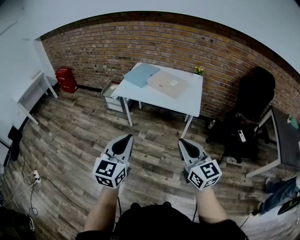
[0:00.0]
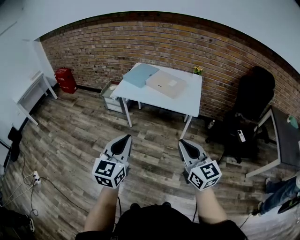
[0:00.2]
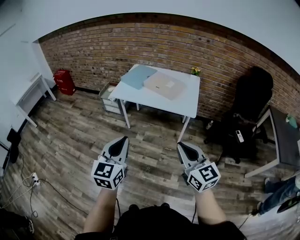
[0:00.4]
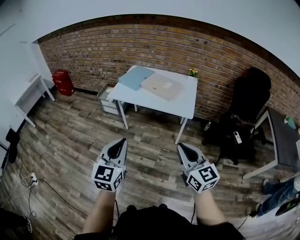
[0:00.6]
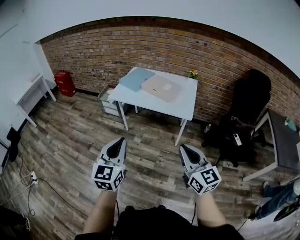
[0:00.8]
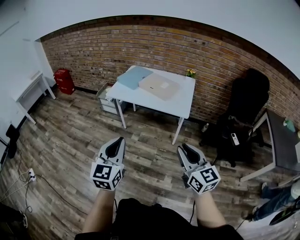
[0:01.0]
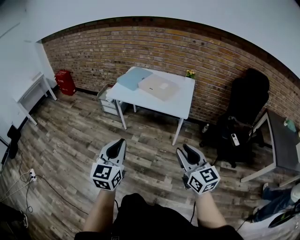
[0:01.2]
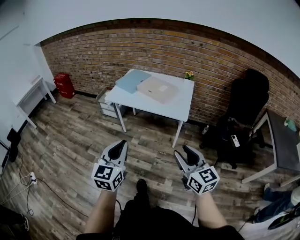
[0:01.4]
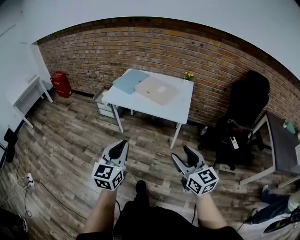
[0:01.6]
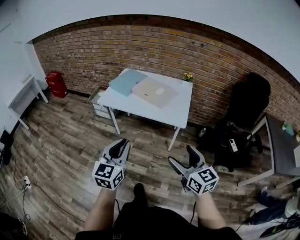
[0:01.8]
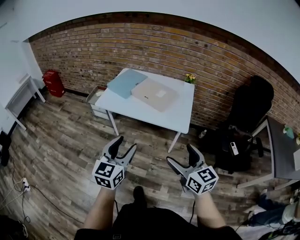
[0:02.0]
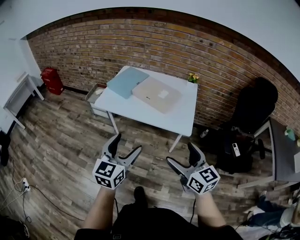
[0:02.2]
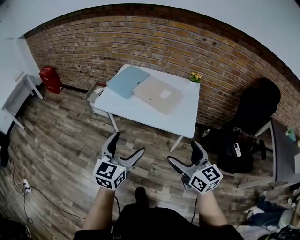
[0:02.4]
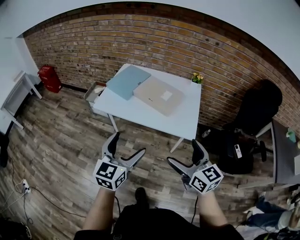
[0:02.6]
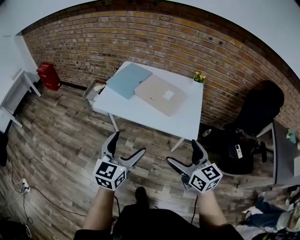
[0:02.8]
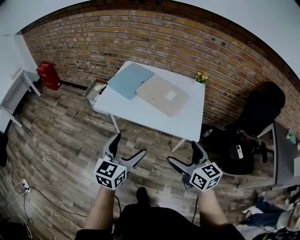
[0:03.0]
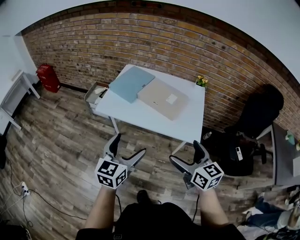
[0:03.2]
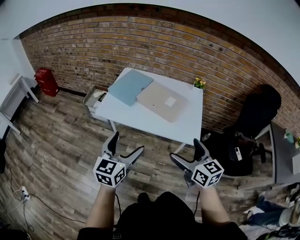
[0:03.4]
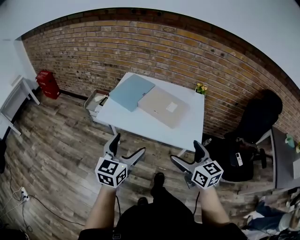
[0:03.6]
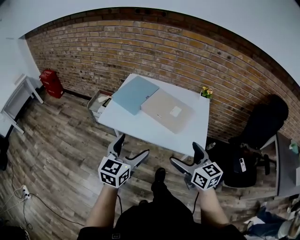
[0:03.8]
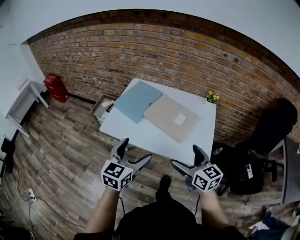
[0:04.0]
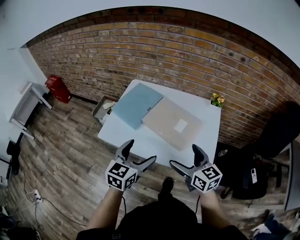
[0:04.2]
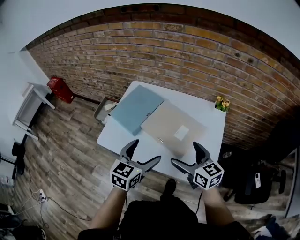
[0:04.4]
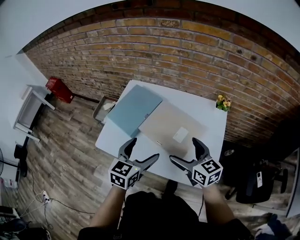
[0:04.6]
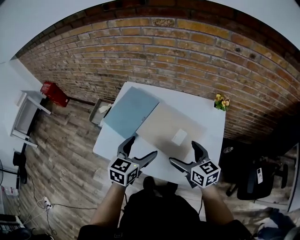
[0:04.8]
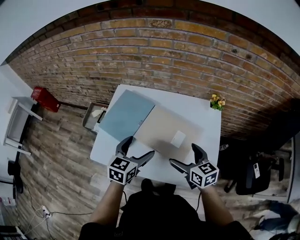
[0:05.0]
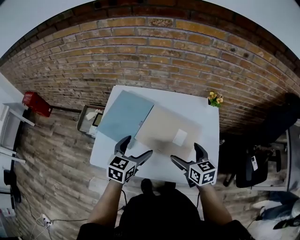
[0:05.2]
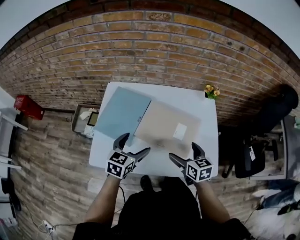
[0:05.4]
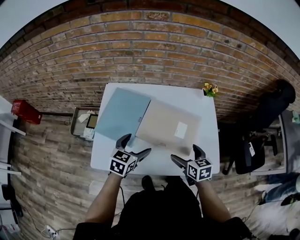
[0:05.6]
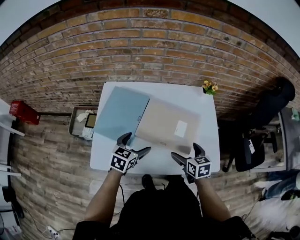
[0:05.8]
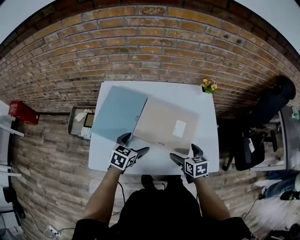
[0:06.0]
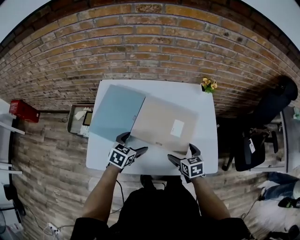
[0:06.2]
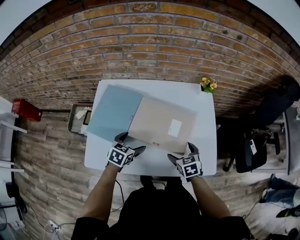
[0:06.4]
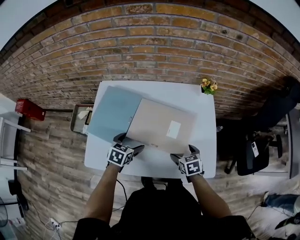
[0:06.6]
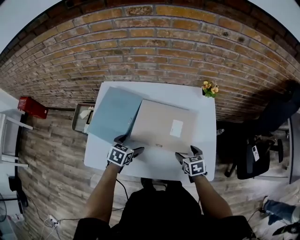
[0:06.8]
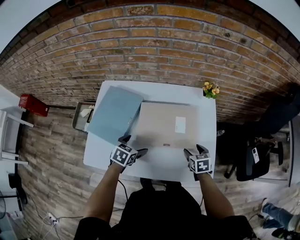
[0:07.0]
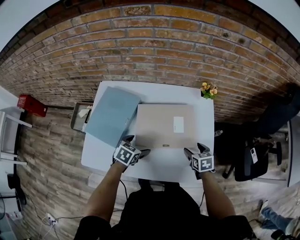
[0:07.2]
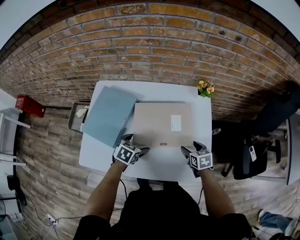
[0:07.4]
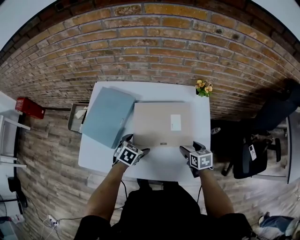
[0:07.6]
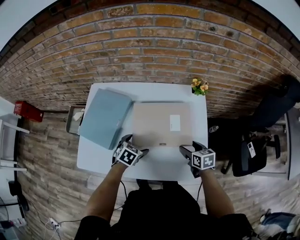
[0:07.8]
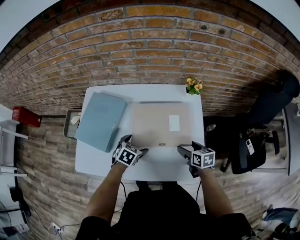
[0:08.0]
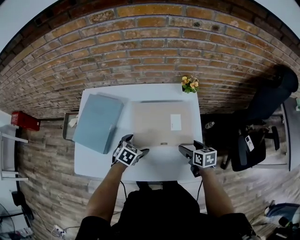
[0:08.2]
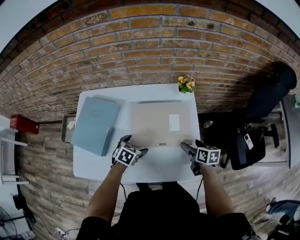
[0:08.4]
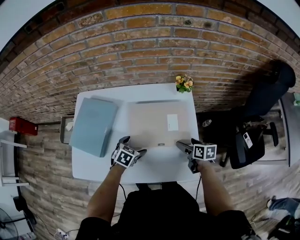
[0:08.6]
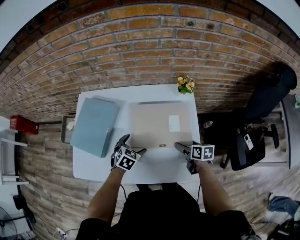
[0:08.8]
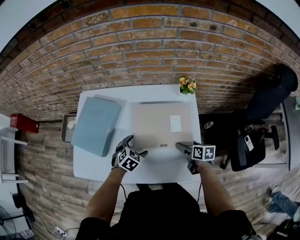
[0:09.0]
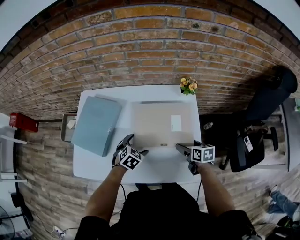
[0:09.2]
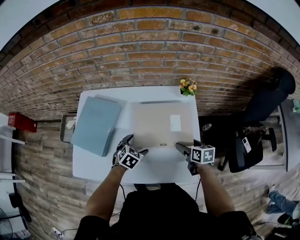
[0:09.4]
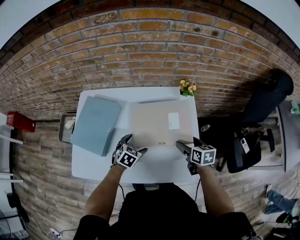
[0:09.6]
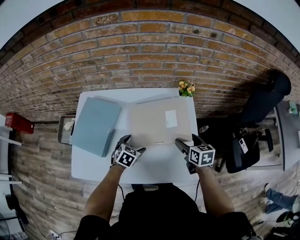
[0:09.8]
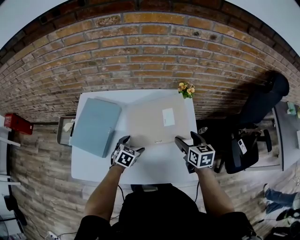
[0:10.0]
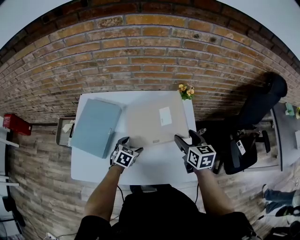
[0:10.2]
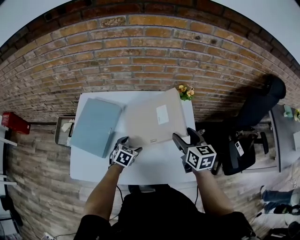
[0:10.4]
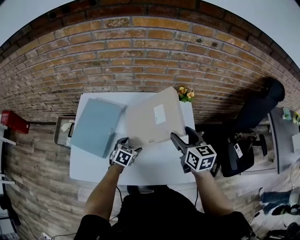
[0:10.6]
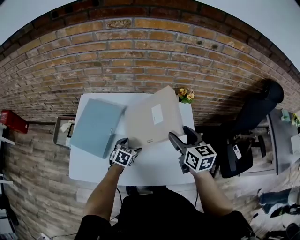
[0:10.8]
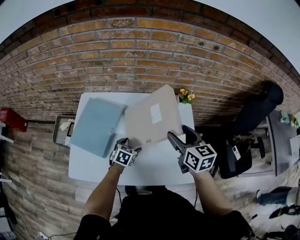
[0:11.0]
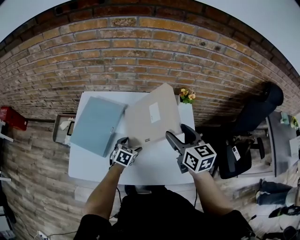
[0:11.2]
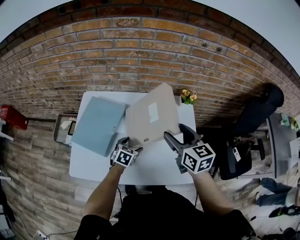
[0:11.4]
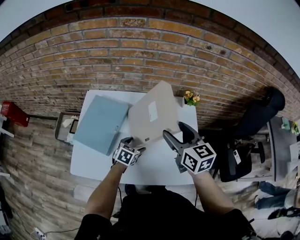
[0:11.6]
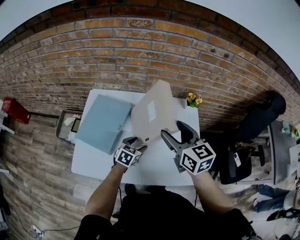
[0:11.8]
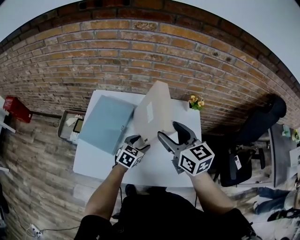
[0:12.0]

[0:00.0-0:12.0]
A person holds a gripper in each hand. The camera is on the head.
0:00.0 to 0:01.6: Both grippers move to the right, some 10 cm. The right gripper opens.
0:01.6 to 0:03.0: The two grippers go about 25 cm forward. The right gripper opens up, while the left gripper opens up.
0:03.0 to 0:04.4: The two grippers go some 25 cm forward.
0:04.4 to 0:06.0: Both grippers move downward, about 15 cm. The left gripper rotates approximately 30 degrees. The right gripper changes its angle by roughly 40 degrees.
0:06.0 to 0:07.6: The left gripper heads to the right and downward, covering roughly 10 cm; the right gripper is displaced to the right and forward by roughly 15 cm, and closes up.
0:07.6 to 0:09.0: The right gripper ends up about 5 cm from where it was, and rotates some 20 degrees; the left gripper is displaced to the right by about 5 cm.
0:09.0 to 0:10.4: The right gripper travels upward by approximately 20 cm, and rotates about 30 degrees.
0:10.4 to 0:12.0: The left gripper goes about 5 cm upward. The right gripper is displaced to the left and upward by some 20 cm, and changes its angle by approximately 20 degrees.

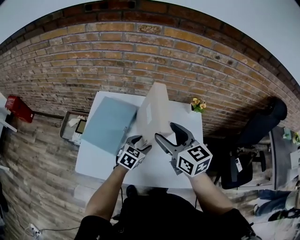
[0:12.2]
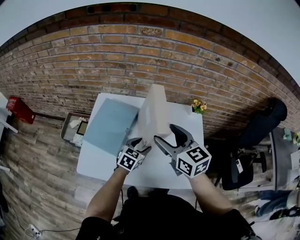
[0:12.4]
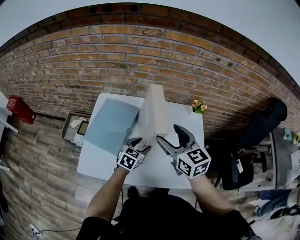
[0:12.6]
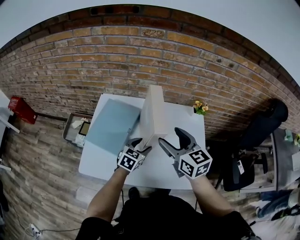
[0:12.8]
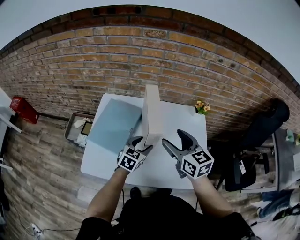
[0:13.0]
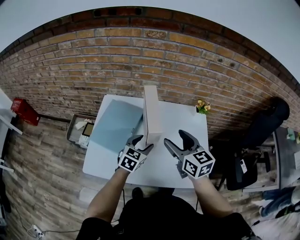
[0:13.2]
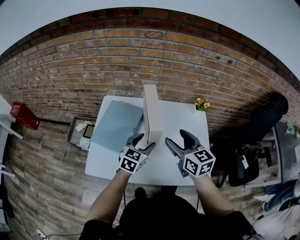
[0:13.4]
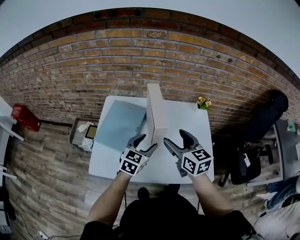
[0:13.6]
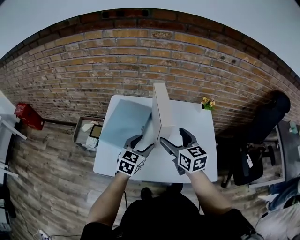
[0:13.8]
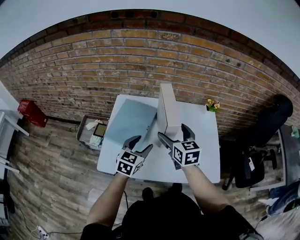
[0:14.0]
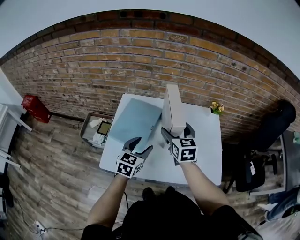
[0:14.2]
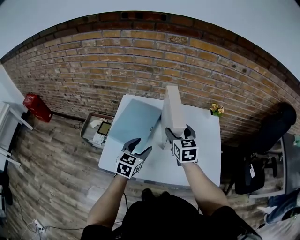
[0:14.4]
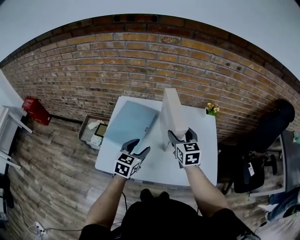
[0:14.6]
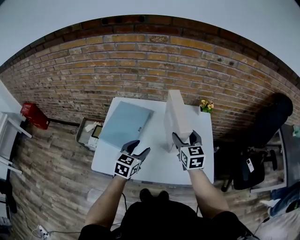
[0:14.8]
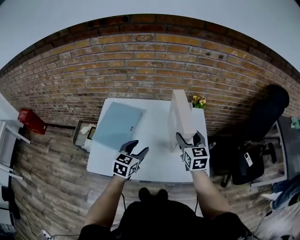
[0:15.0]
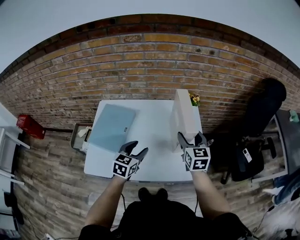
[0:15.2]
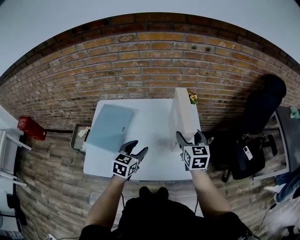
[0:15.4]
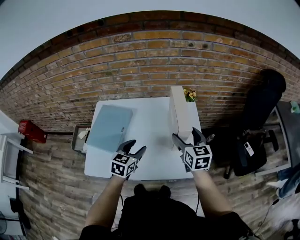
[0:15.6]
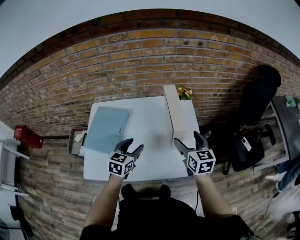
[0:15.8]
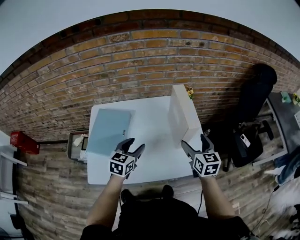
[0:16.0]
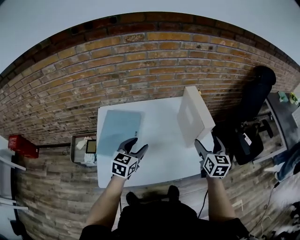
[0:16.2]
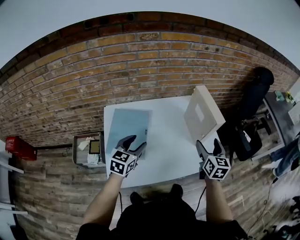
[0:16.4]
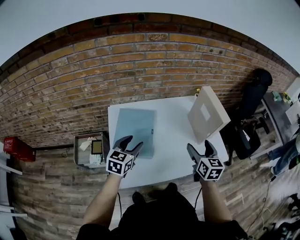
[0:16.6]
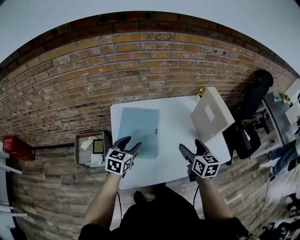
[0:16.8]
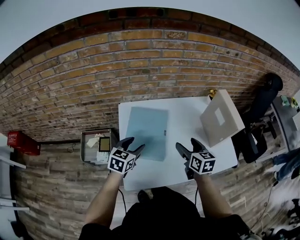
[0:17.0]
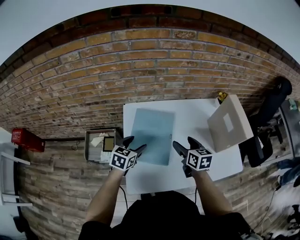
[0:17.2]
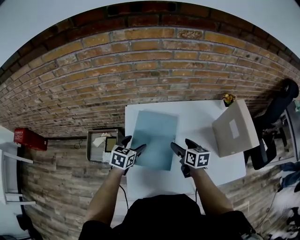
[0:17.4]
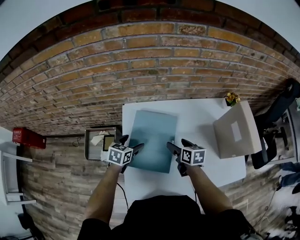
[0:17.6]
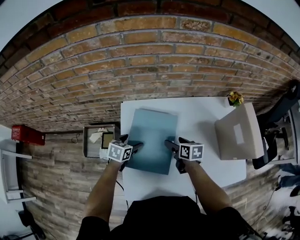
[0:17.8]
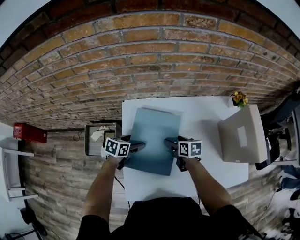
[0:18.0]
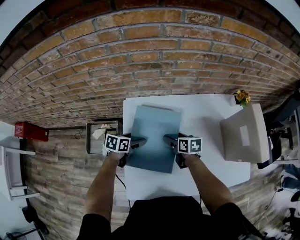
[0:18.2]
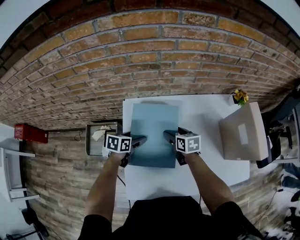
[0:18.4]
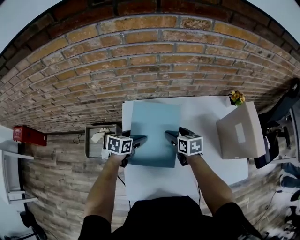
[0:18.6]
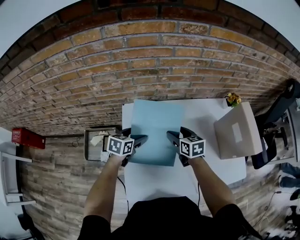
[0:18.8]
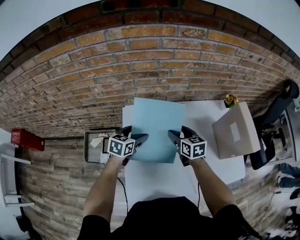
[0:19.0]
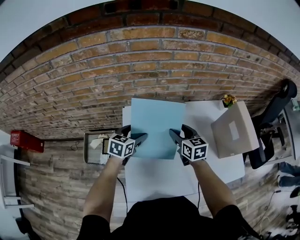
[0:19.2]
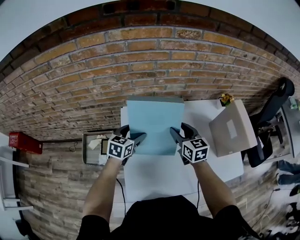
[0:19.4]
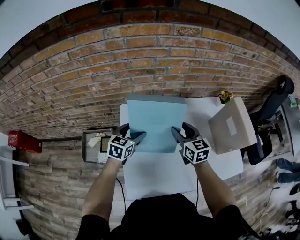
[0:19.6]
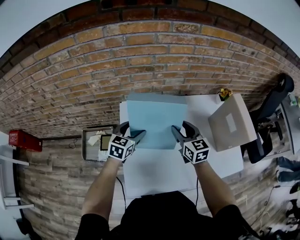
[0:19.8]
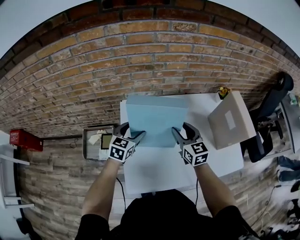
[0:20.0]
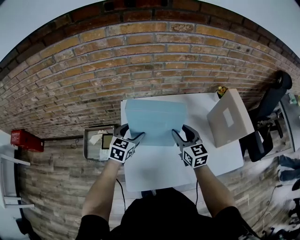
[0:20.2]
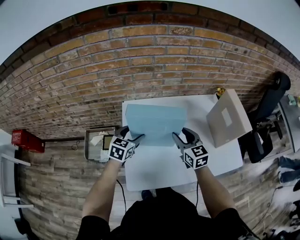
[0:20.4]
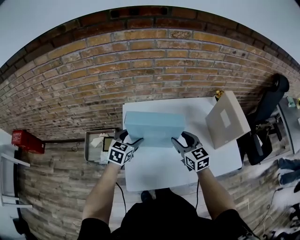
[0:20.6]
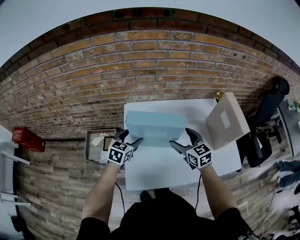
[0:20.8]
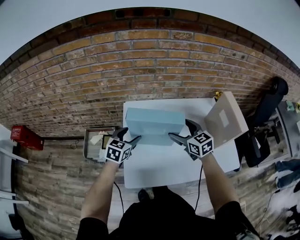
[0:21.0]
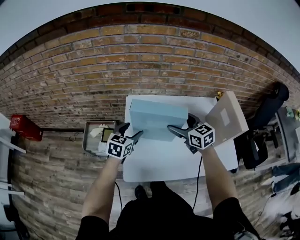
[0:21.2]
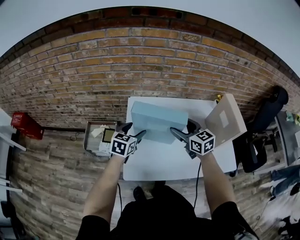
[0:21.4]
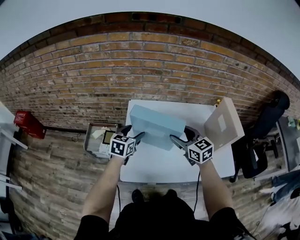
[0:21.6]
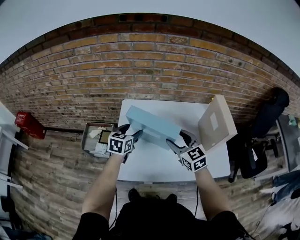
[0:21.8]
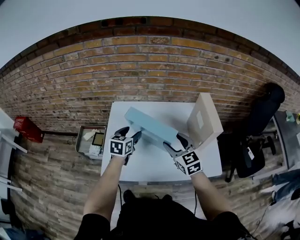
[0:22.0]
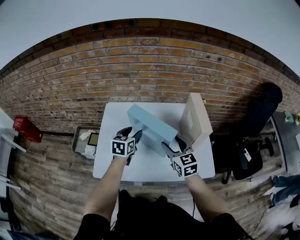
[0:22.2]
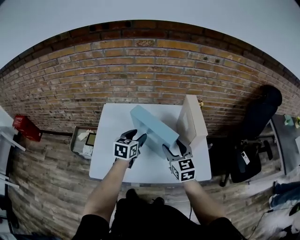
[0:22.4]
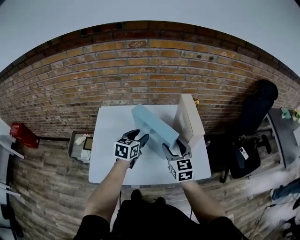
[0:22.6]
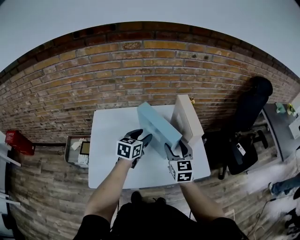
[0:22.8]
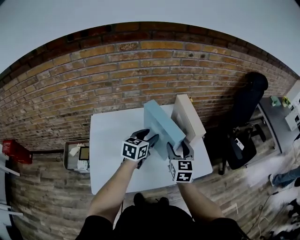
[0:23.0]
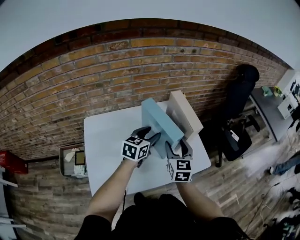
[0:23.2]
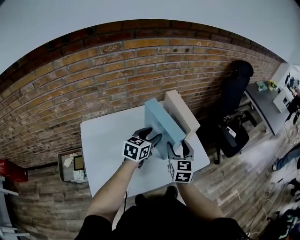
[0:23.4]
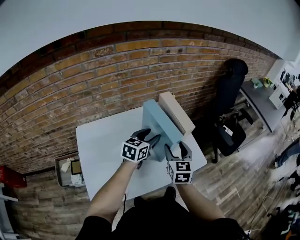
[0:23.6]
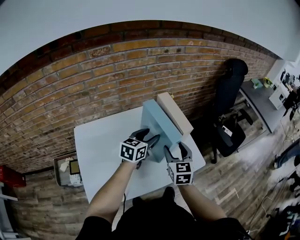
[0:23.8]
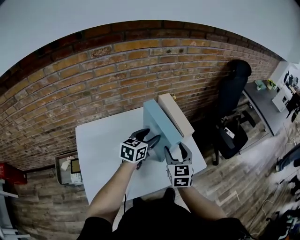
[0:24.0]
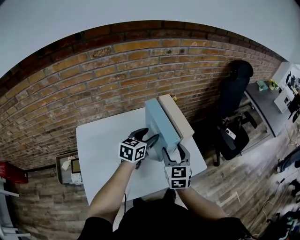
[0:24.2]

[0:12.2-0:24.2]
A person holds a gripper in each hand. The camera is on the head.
0:12.2 to 0:13.8: The right gripper travels downward by some 5 cm. Meanwhile the left gripper moves to the left and upward, about 10 cm.
0:13.8 to 0:15.2: The right gripper heads to the right, covering roughly 20 cm, and changes its angle by about 20 degrees, while the left gripper is displaced to the right by approximately 5 cm.
0:15.2 to 0:16.6: The right gripper is displaced backward and to the left by about 15 cm; the left gripper travels to the left by some 20 cm.
0:16.6 to 0:18.2: The left gripper moves downward, forward and to the left, roughly 25 cm, turns by some 40 degrees, and opens. The right gripper goes roughly 35 cm to the left, downward and forward, and rotates approximately 40 degrees.
0:18.2 to 0:19.8: Both grippers travel together upward, roughly 15 cm. The right gripper turns by roughly 40 degrees. Meanwhile the left gripper turns by some 40 degrees.
0:19.8 to 0:21.2: The left gripper moves backward, about 10 cm; the right gripper ends up about 5 cm from where it was, changes its angle by some 20 degrees, and opens its fingers.
0:21.2 to 0:22.6: The left gripper shifts approximately 25 cm to the right. The right gripper travels to the right and backward by about 25 cm, and rotates about 20 degrees.
0:22.6 to 0:24.2: The left gripper shifts by approximately 15 cm, and changes its angle by about 20 degrees. The right gripper changes its angle by approximately 20 degrees.
